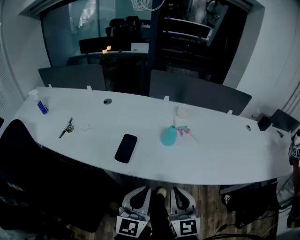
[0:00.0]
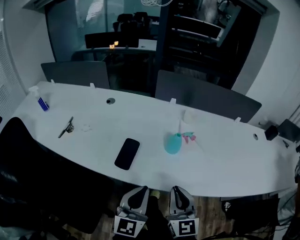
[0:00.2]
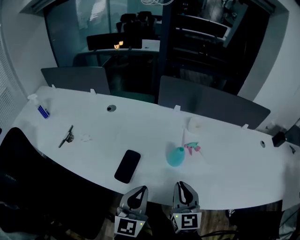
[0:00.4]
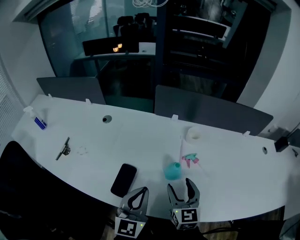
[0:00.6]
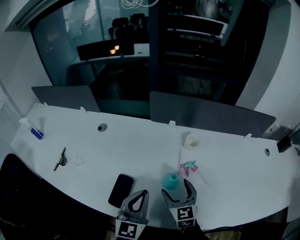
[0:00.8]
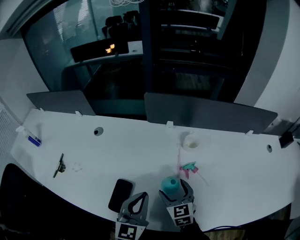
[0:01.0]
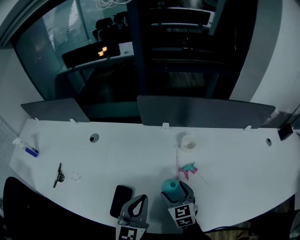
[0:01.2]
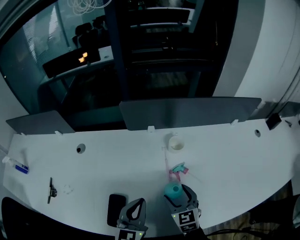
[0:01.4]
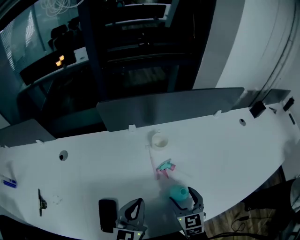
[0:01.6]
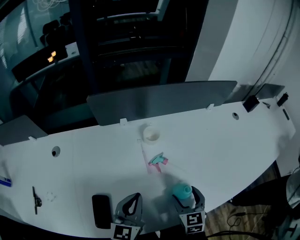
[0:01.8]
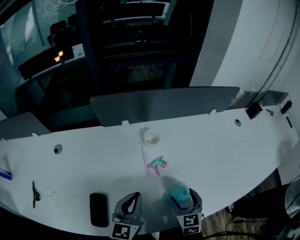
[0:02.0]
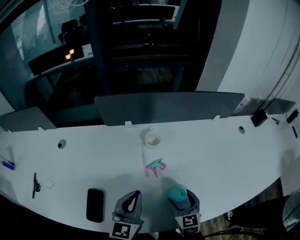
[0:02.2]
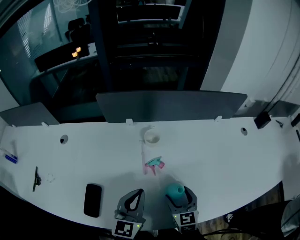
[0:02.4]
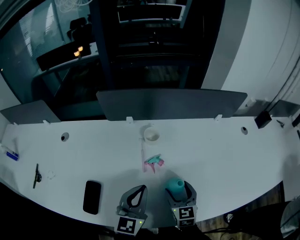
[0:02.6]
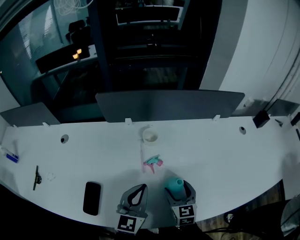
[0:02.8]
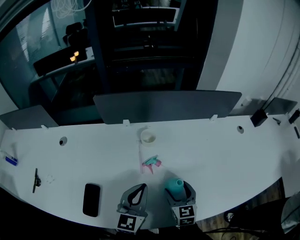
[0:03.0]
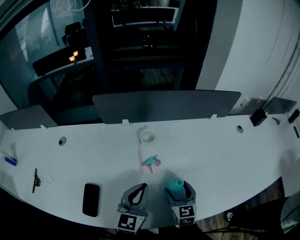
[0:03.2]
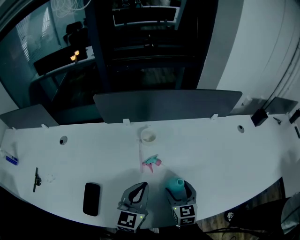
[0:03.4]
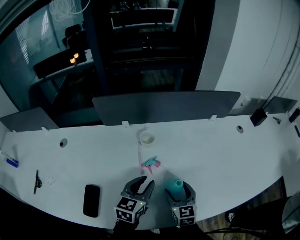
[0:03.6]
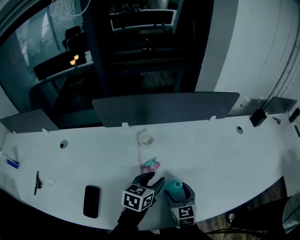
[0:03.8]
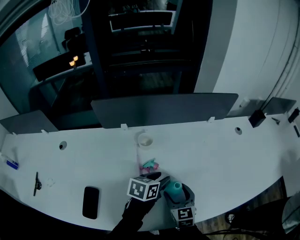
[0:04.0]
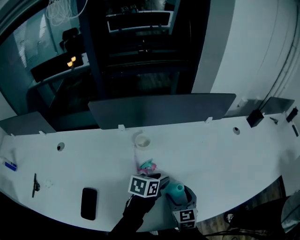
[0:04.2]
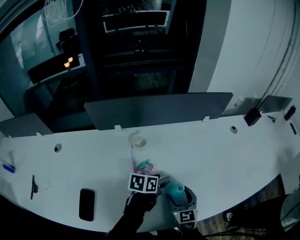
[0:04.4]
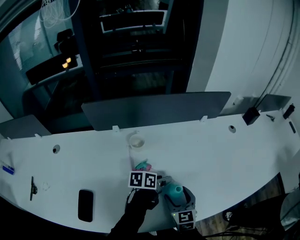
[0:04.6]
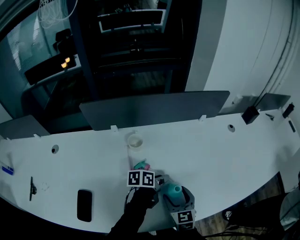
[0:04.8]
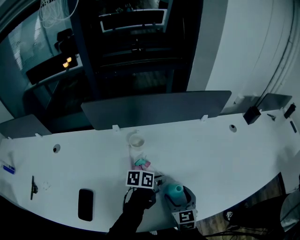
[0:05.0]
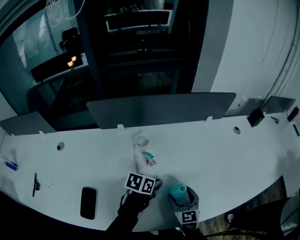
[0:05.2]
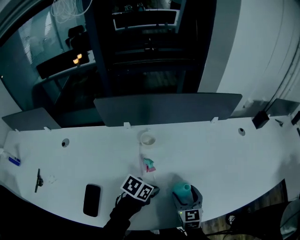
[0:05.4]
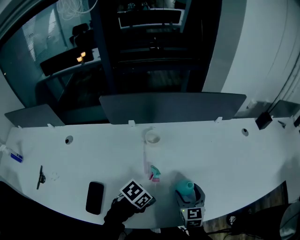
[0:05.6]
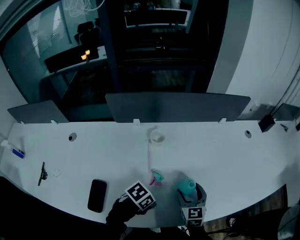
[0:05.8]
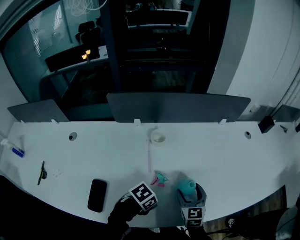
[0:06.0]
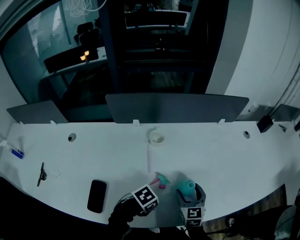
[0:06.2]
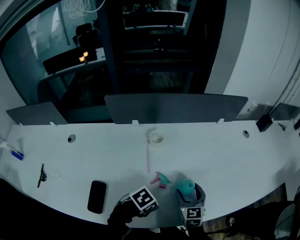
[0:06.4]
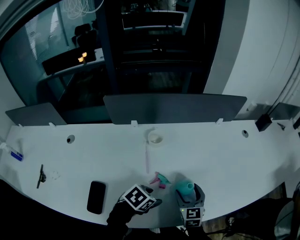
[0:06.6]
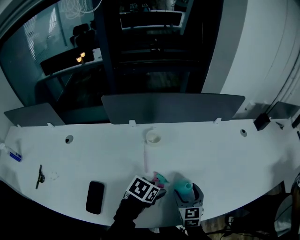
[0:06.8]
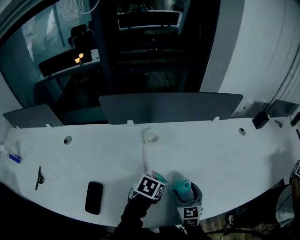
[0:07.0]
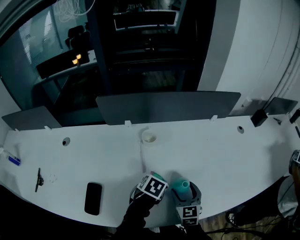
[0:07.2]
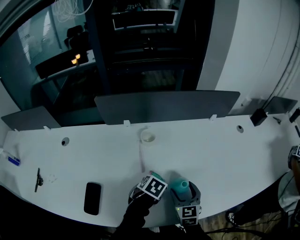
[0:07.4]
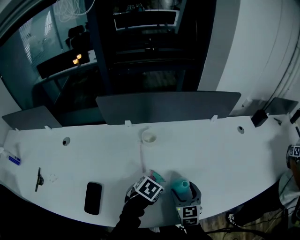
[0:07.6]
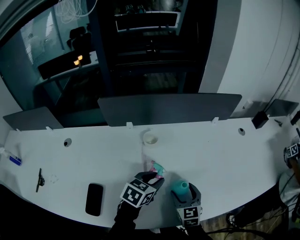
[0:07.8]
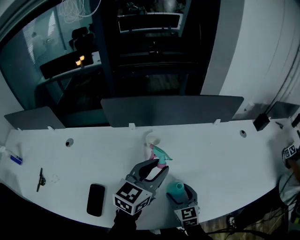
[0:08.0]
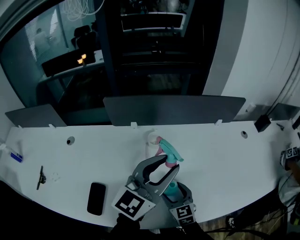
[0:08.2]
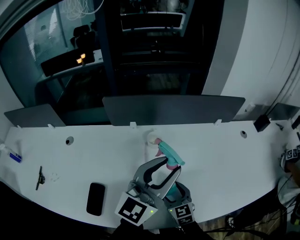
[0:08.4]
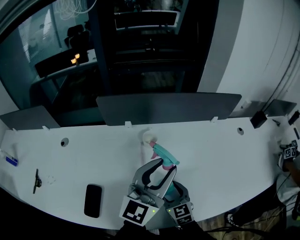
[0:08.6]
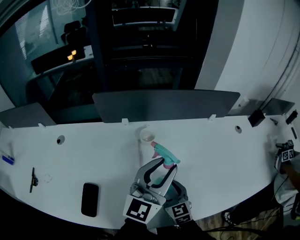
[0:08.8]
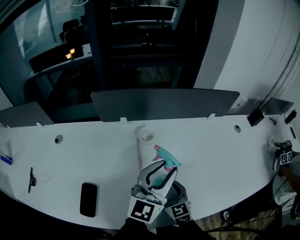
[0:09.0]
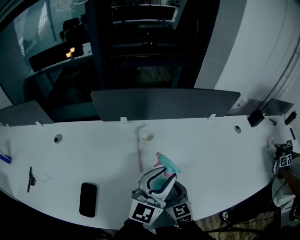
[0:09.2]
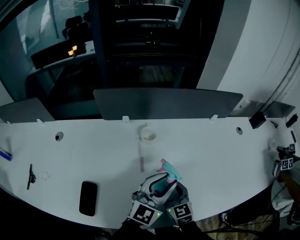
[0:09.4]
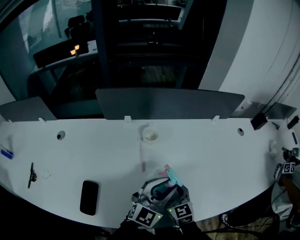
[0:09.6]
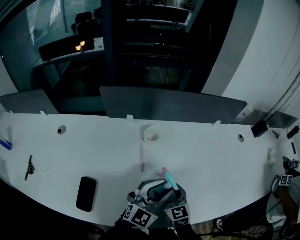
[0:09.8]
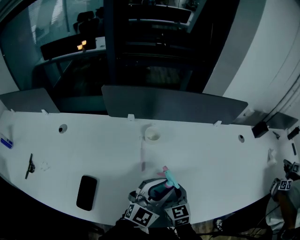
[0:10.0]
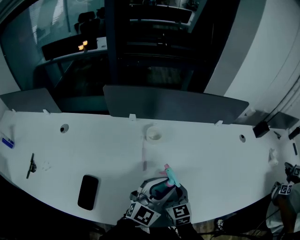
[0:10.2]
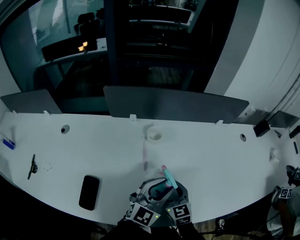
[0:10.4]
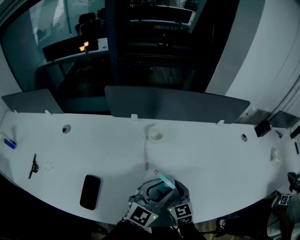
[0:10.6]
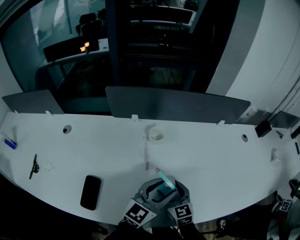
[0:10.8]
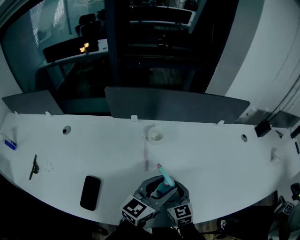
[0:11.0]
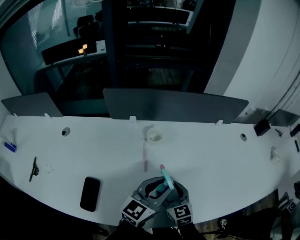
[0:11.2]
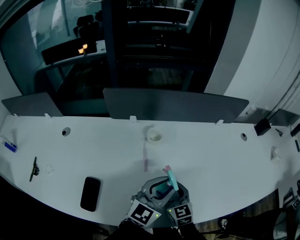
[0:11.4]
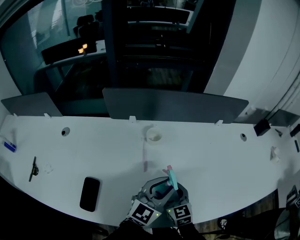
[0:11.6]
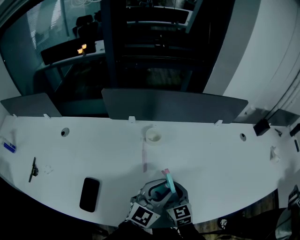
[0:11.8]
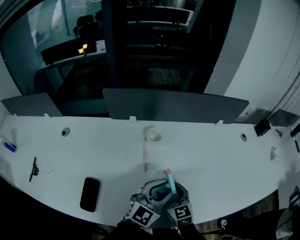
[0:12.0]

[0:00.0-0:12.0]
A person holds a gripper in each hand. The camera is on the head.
0:00.0 to 0:01.6: The left gripper heads forward, covering some 30 cm, while the right gripper shifts approximately 30 cm forward and downward, rotates about 30 degrees, and opens.
0:01.6 to 0:03.0: The two grippers go roughly 10 cm to the right.
0:03.0 to 0:04.4: The left gripper is displaced downward, to the right and forward by some 20 cm, changes its angle by roughly 60 degrees, and opens.
0:04.4 to 0:06.0: The left gripper shifts roughly 20 cm backward, rotates roughly 40 degrees, and closes.
0:06.0 to 0:07.6: The left gripper shifts by about 10 cm, and turns by some 30 degrees.
0:07.6 to 0:09.0: The right gripper moves to the left, some 10 cm. The left gripper moves upward, roughly 25 cm, and tips its fingers upward by roughly 70 degrees.
0:09.0 to 0:10.4: The left gripper moves downward, about 10 cm.

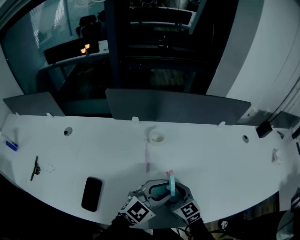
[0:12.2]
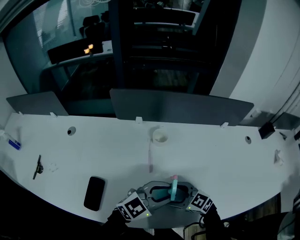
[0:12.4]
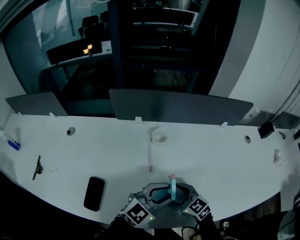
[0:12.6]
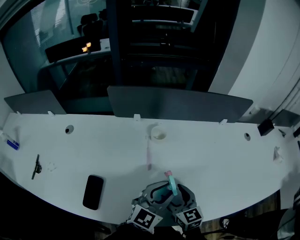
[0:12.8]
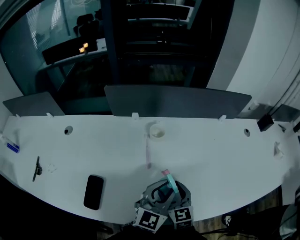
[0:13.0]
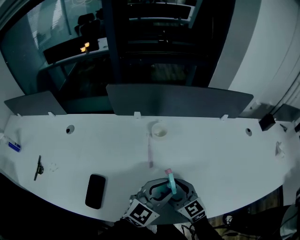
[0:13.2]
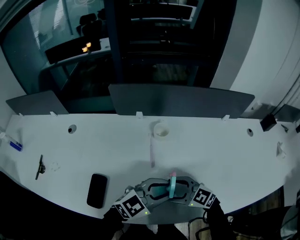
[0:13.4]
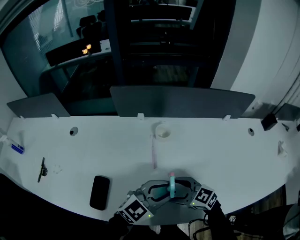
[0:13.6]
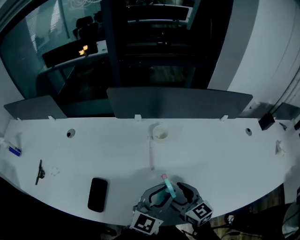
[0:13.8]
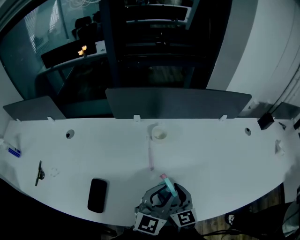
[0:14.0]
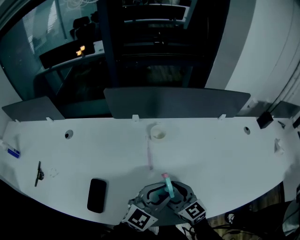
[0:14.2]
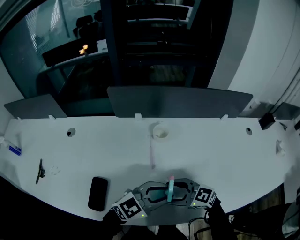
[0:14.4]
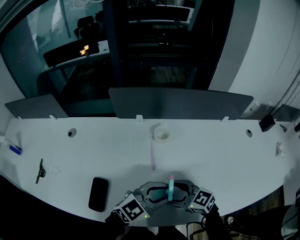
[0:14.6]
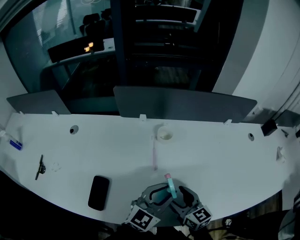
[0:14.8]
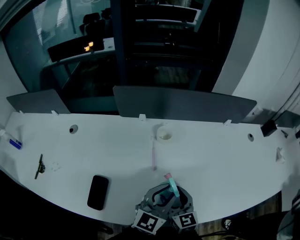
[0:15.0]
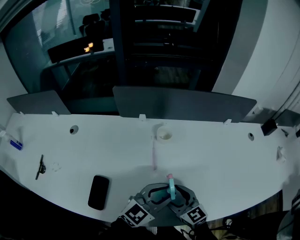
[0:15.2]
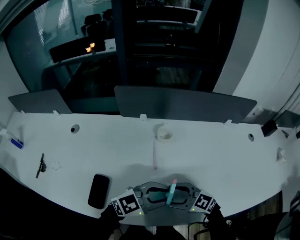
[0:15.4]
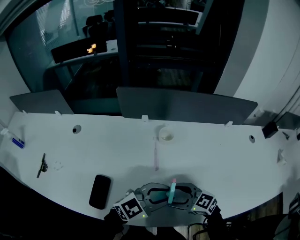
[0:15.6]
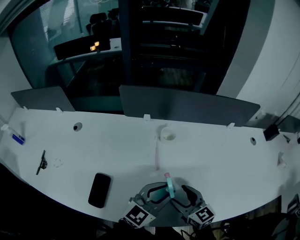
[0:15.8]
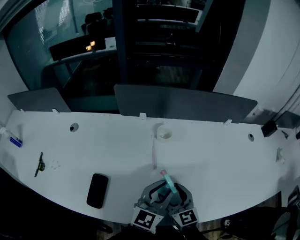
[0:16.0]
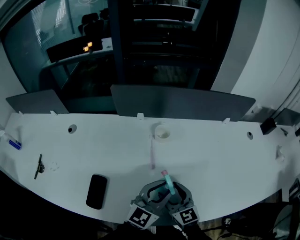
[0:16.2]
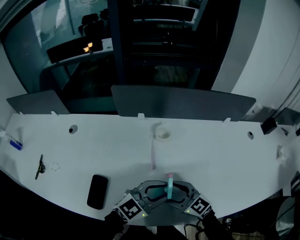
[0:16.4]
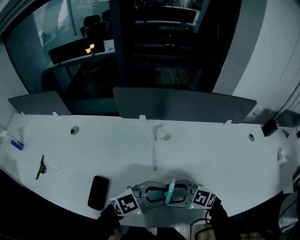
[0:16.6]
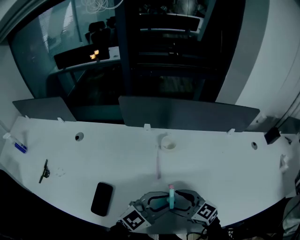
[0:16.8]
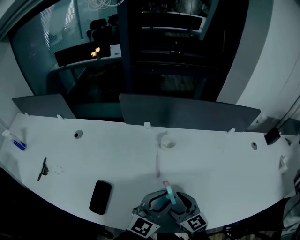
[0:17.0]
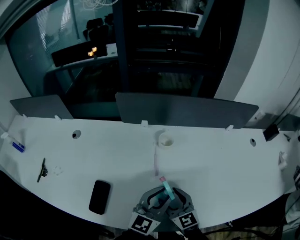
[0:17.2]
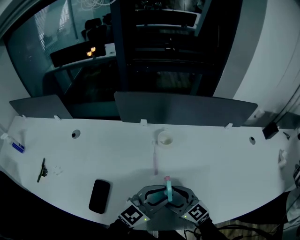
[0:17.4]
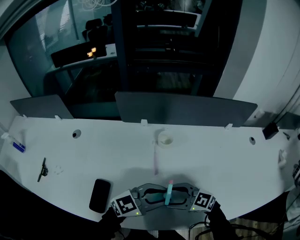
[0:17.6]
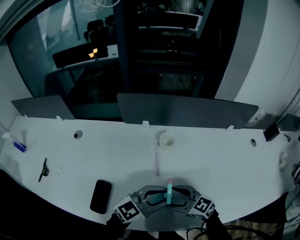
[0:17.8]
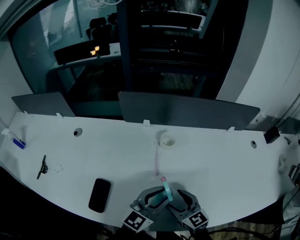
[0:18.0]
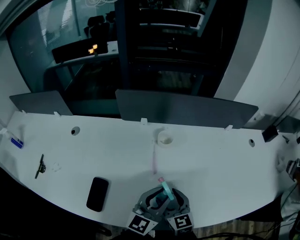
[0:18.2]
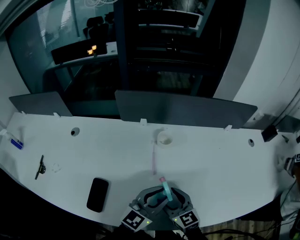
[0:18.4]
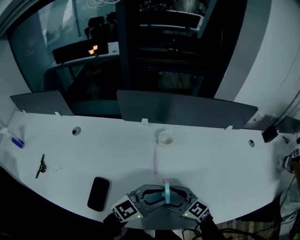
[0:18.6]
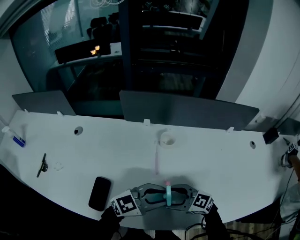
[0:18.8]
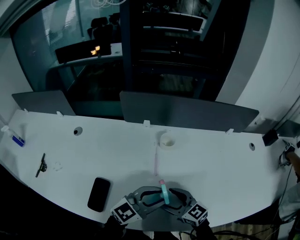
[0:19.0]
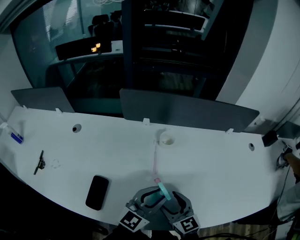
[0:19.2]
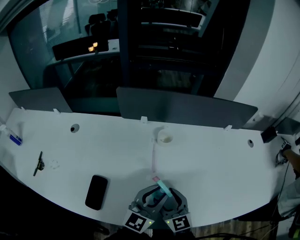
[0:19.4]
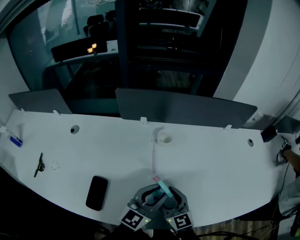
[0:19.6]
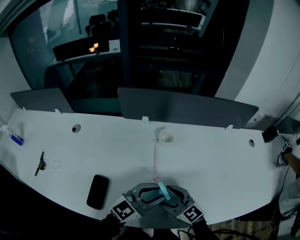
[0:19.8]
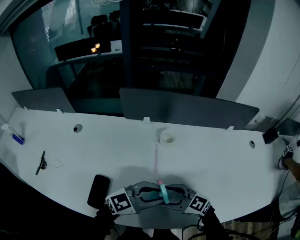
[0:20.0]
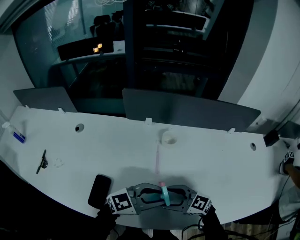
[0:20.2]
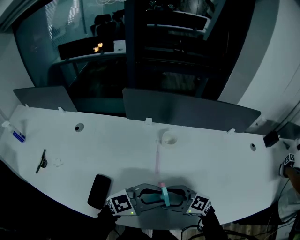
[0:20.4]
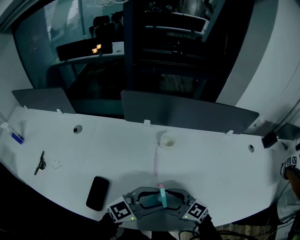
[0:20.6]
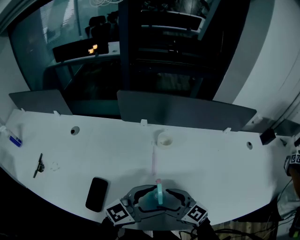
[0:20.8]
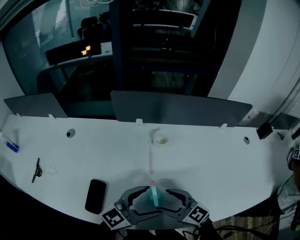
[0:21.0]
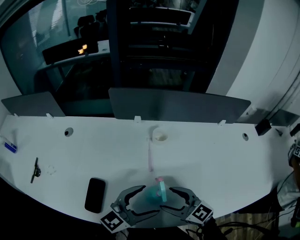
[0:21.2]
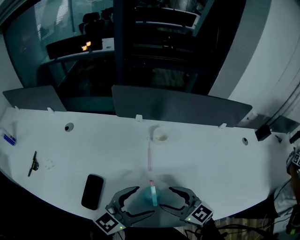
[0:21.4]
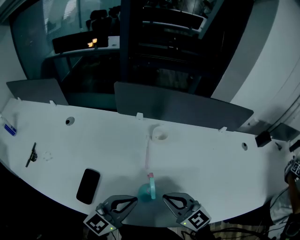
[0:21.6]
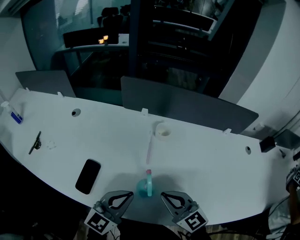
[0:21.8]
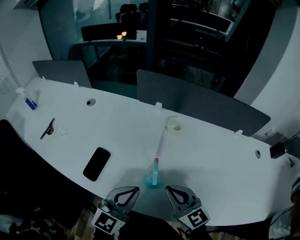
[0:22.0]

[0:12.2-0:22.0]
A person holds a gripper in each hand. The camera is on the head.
0:12.2 to 0:13.6: The right gripper changes its angle by some 30 degrees.
0:13.6 to 0:15.0: The right gripper changes its angle by approximately 50 degrees. The left gripper turns by about 30 degrees.
0:15.0 to 0:16.4: The left gripper swivels about 30 degrees, while the right gripper swivels about 40 degrees.
0:17.8 to 0:19.2: The right gripper changes its angle by approximately 30 degrees. Meanwhile the left gripper turns by roughly 20 degrees.
0:19.2 to 0:20.6: The right gripper turns by about 30 degrees. Meanwhile the left gripper swivels approximately 20 degrees.
0:20.6 to 0:22.0: The right gripper moves upward, some 5 cm, and closes up; the left gripper ends up some 10 cm from where it was, swivels some 40 degrees, and closes up.

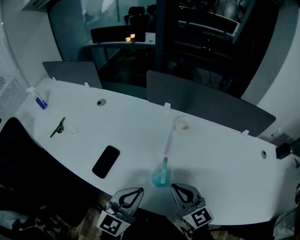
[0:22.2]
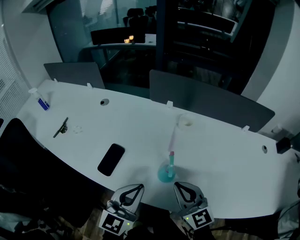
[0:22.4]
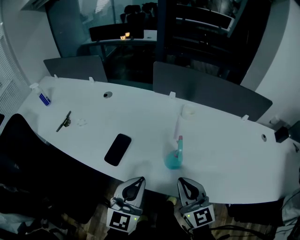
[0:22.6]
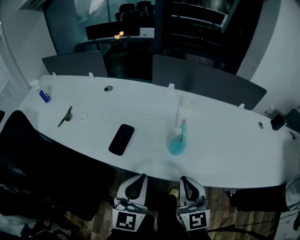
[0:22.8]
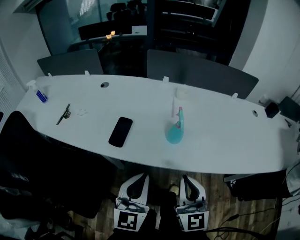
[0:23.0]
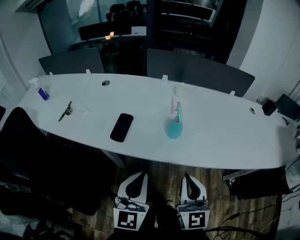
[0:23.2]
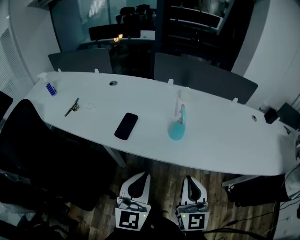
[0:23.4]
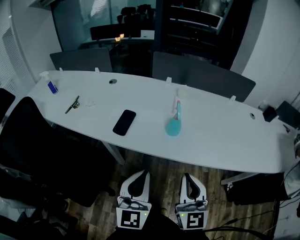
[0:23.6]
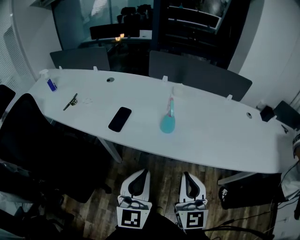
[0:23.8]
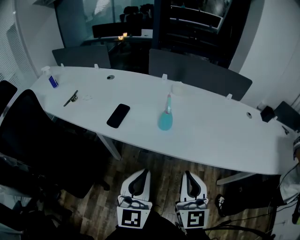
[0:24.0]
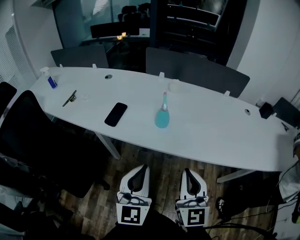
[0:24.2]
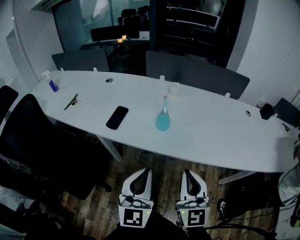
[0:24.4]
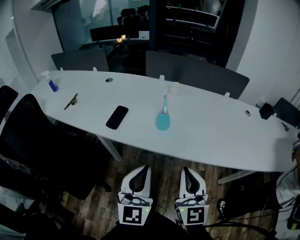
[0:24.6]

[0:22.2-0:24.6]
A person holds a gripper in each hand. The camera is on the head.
0:22.2 to 0:23.4: The left gripper is displaced backward and to the left by about 20 cm. Meanwhile the right gripper travels backward by some 25 cm, and changes its angle by roughly 40 degrees.
0:23.4 to 0:24.6: The grippers both shift to the right by approximately 10 cm.
